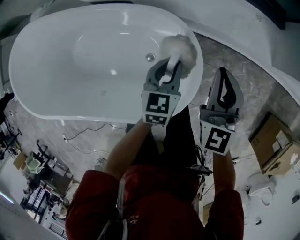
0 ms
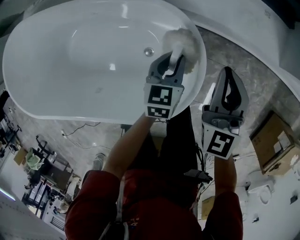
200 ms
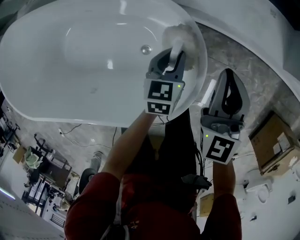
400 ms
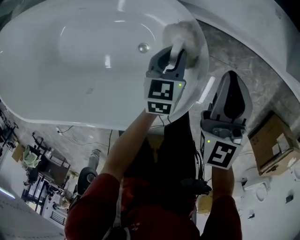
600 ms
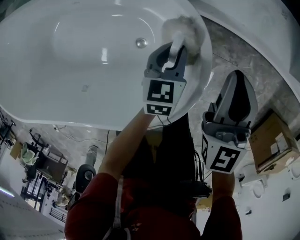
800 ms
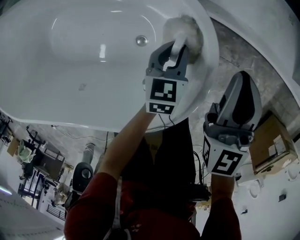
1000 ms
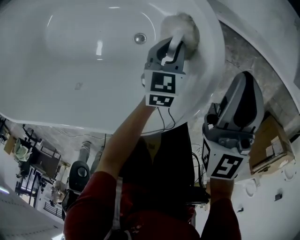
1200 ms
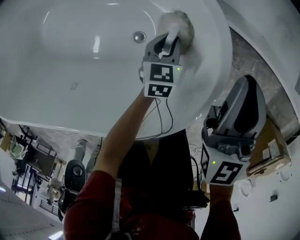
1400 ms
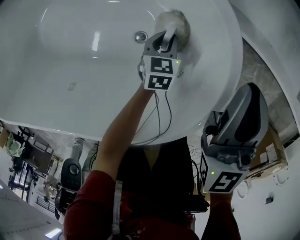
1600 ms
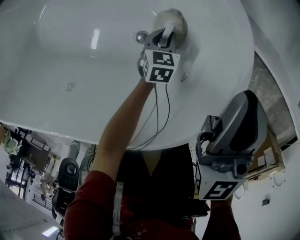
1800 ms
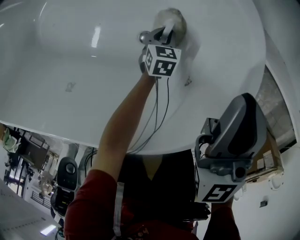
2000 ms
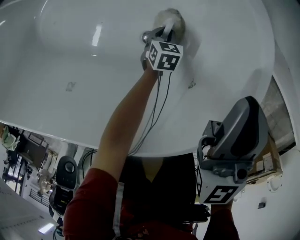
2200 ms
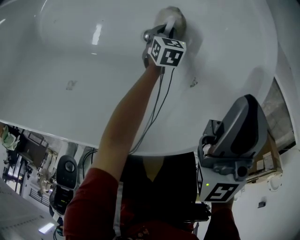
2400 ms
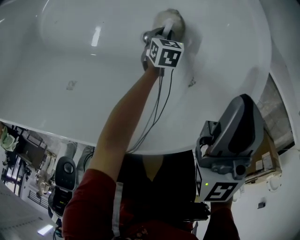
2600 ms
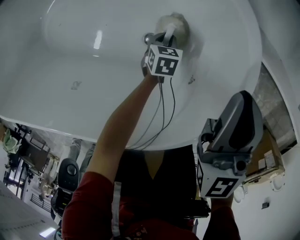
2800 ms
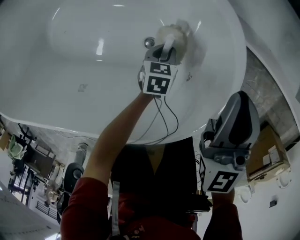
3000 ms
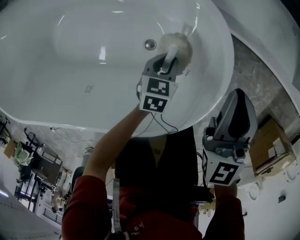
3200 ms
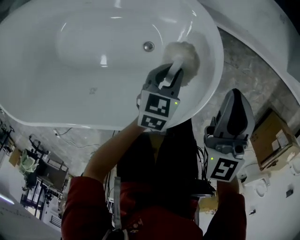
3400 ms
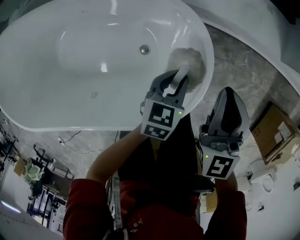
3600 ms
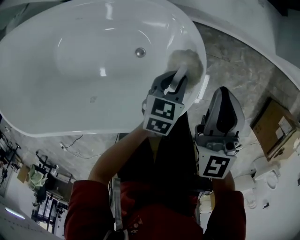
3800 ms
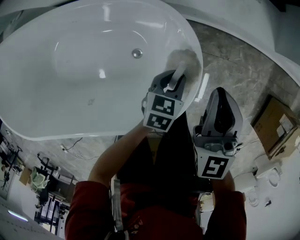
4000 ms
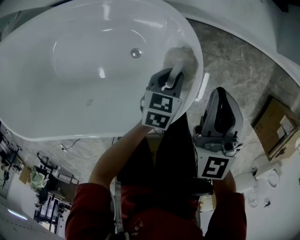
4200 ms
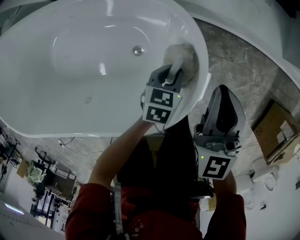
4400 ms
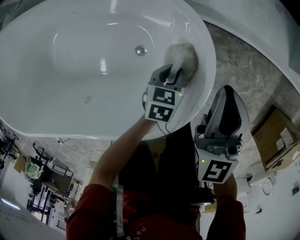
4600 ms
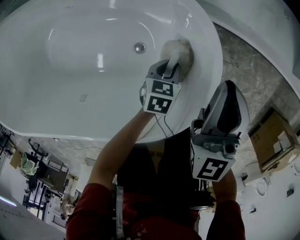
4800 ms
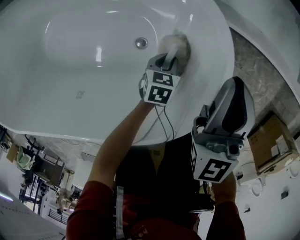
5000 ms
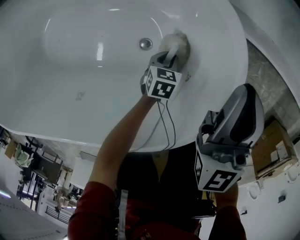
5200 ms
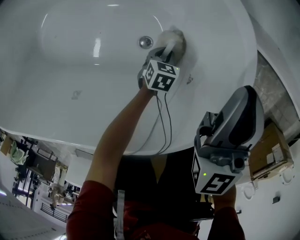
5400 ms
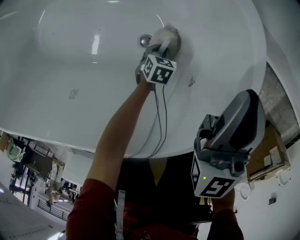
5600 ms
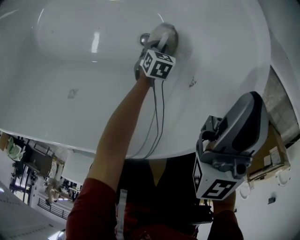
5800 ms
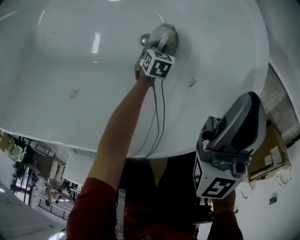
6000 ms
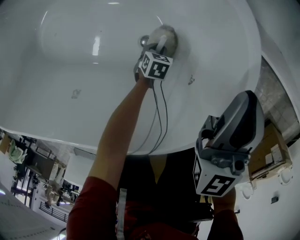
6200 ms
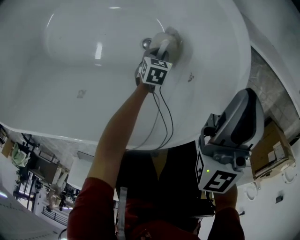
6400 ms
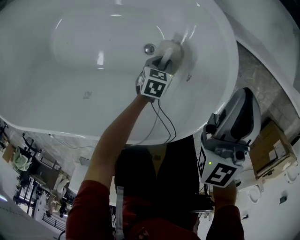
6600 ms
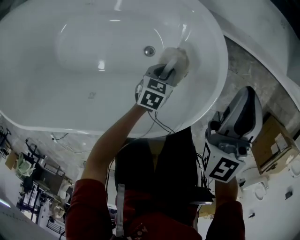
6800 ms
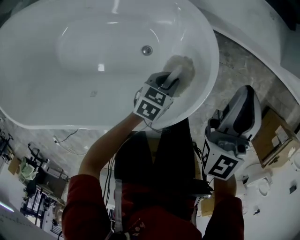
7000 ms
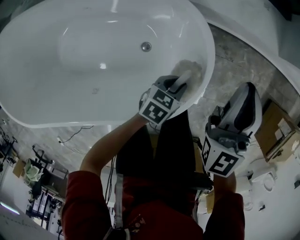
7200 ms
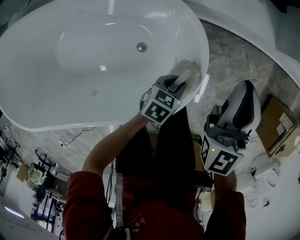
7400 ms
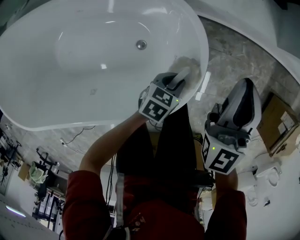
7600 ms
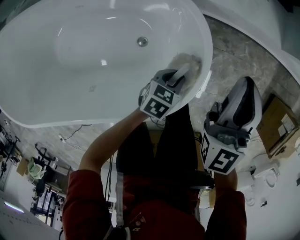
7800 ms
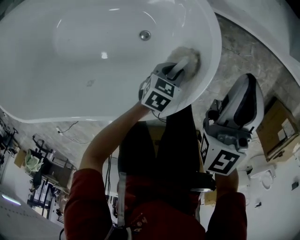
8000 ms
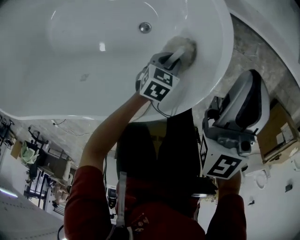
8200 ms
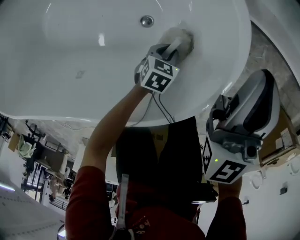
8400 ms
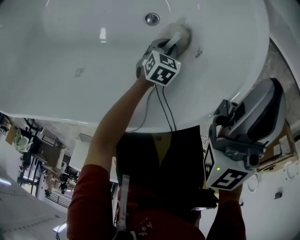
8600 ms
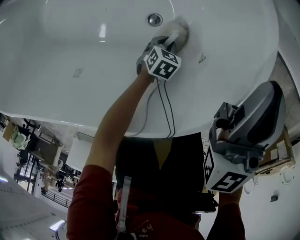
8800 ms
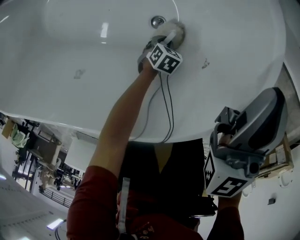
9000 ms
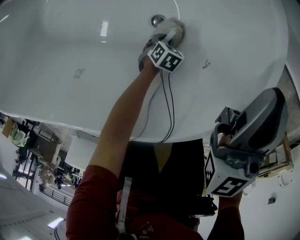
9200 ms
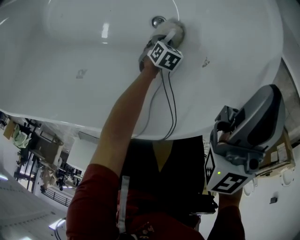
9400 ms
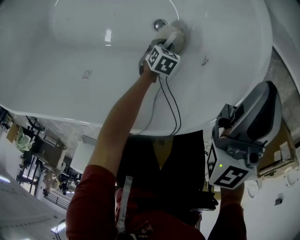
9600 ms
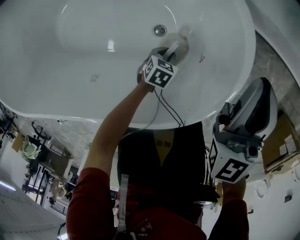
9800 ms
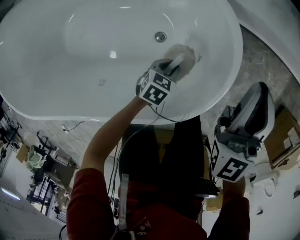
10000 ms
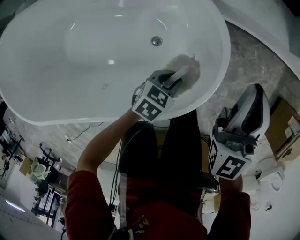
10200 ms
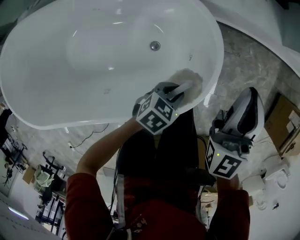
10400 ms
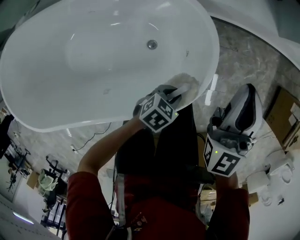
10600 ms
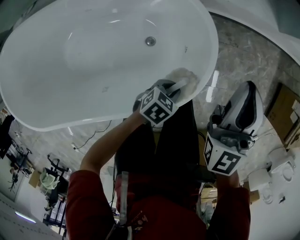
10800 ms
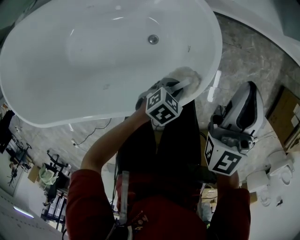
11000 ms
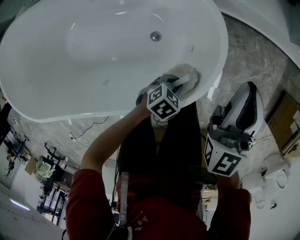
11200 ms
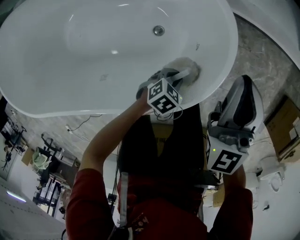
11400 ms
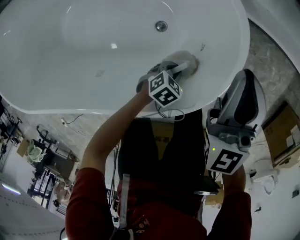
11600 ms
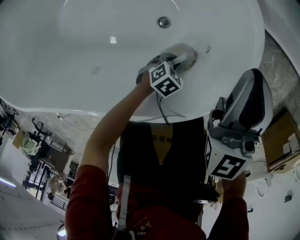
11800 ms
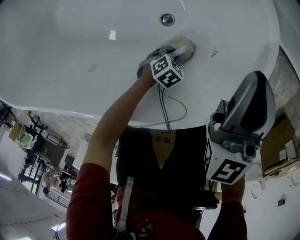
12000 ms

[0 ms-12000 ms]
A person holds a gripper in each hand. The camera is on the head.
0 ms to 1600 ms: The right gripper goes about 15 cm downward; the left gripper heads downward, covering roughly 35 cm.
1600 ms to 3000 ms: The left gripper travels downward and back again, about 15 cm each way.
3000 ms to 4400 ms: The left gripper moves upward and to the right, roughly 20 cm, while the right gripper heads to the right and upward, covering approximately 10 cm.
4400 ms to 6000 ms: The right gripper travels downward and to the left by roughly 15 cm, while the left gripper travels downward by some 30 cm, and rotates some 20 degrees.
6000 ms to 7600 ms: The left gripper heads upward and to the right, covering approximately 40 cm, and changes its angle by approximately 30 degrees, while the right gripper shifts about 25 cm upward and to the right.
7600 ms to 9000 ms: The right gripper moves downward, roughly 15 cm. The left gripper moves downward, some 35 cm, and points its fingers approximately 30 degrees further downward.
9000 ms to 10400 ms: The right gripper travels upward by approximately 20 cm, and changes its angle by about 20 degrees, while the left gripper goes about 40 cm upward, and turns by about 40 degrees.
10400 ms to 12000 ms: The left gripper travels downward by roughly 30 cm, and rotates about 20 degrees. Meanwhile the right gripper goes approximately 20 cm downward and to the left, and rotates about 20 degrees.

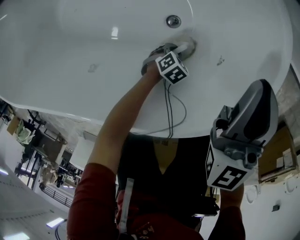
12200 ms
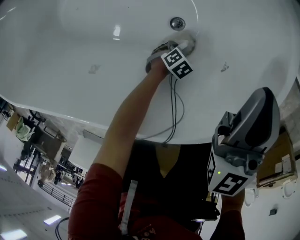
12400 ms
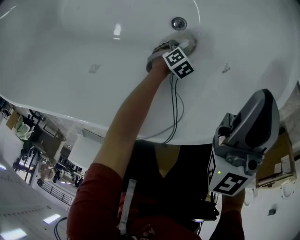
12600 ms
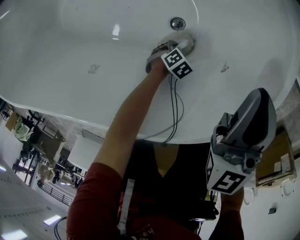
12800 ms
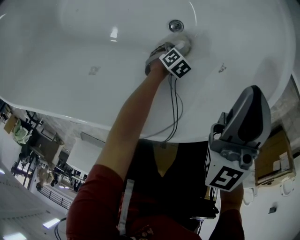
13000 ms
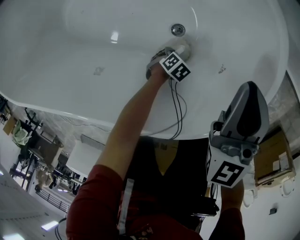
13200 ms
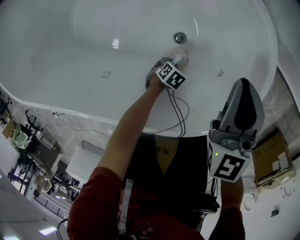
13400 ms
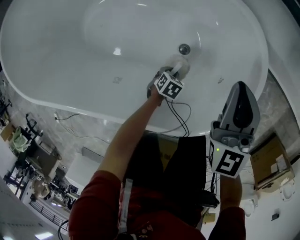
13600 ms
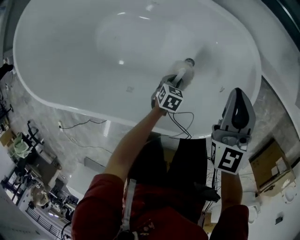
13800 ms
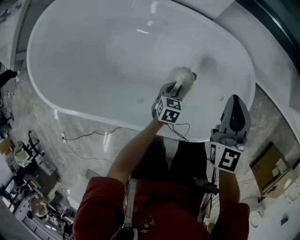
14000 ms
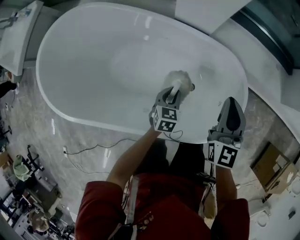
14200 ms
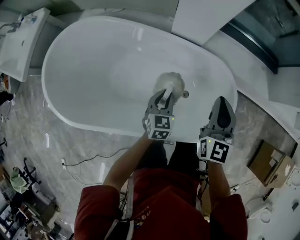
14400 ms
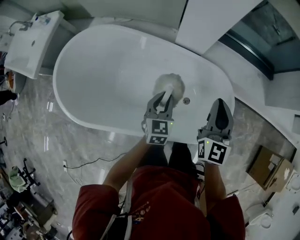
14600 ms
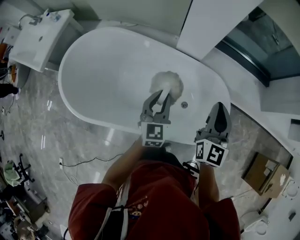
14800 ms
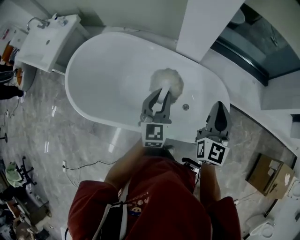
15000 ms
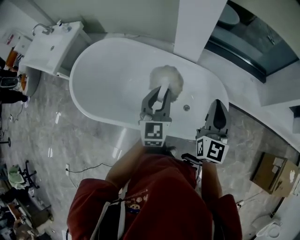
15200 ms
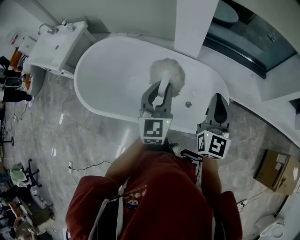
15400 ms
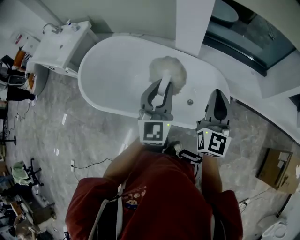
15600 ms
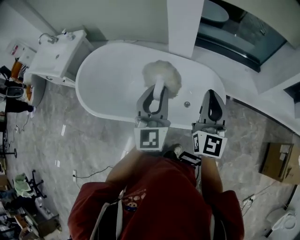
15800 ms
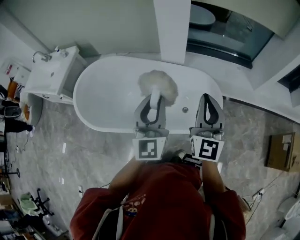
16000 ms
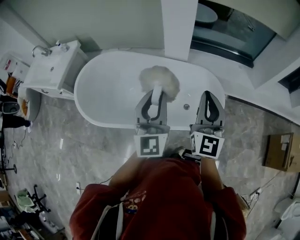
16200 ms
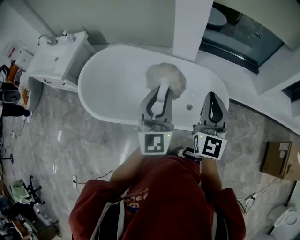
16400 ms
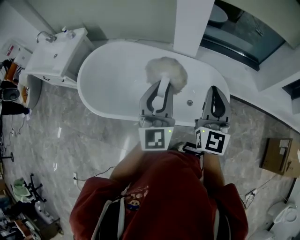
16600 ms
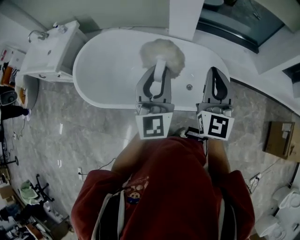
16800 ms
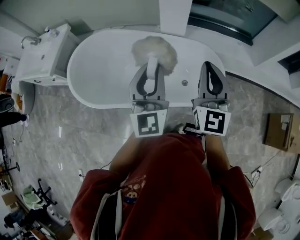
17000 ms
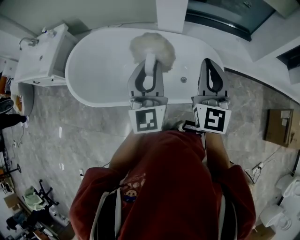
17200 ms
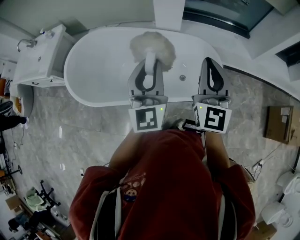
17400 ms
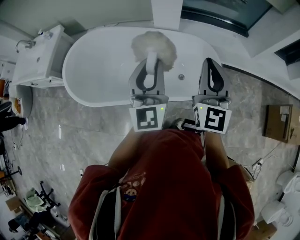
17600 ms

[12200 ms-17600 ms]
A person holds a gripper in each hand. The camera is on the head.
12200 ms to 13600 ms: The left gripper moves upward, about 10 cm, and swivels roughly 20 degrees. Meanwhile the right gripper moves approximately 10 cm.
13600 ms to 15000 ms: The left gripper is displaced upward by about 70 cm, and tips its fingers upward by roughly 60 degrees; the right gripper travels upward and backward by roughly 40 cm, and turns by about 30 degrees.
15000 ms to 16200 ms: The right gripper heads backward and upward, covering roughly 20 cm; the left gripper heads upward and backward, covering roughly 25 cm, and swivels about 20 degrees.
16200 ms to 17600 ms: The grippers move only a little.

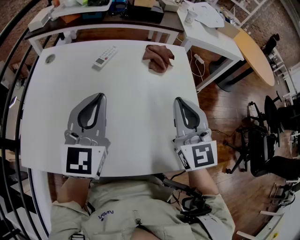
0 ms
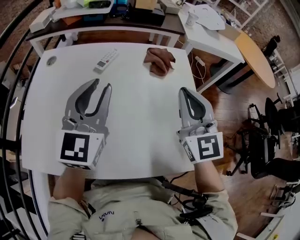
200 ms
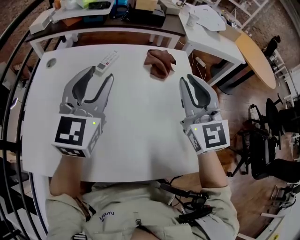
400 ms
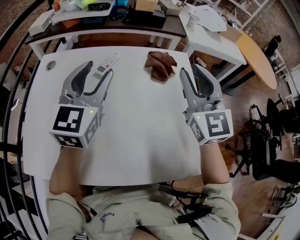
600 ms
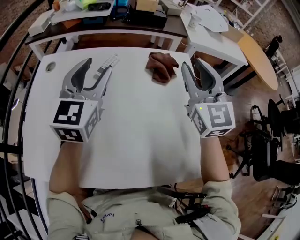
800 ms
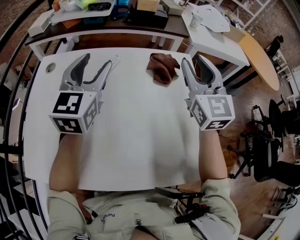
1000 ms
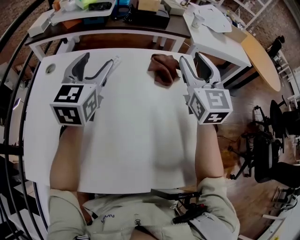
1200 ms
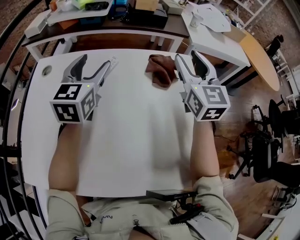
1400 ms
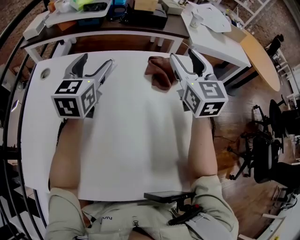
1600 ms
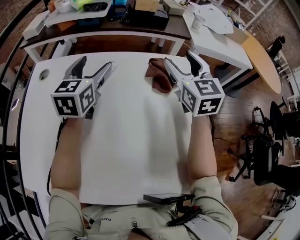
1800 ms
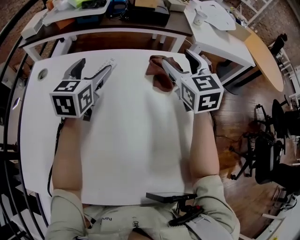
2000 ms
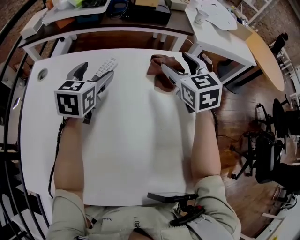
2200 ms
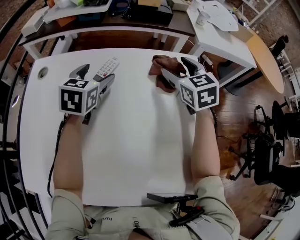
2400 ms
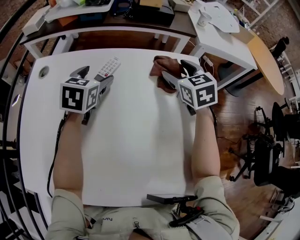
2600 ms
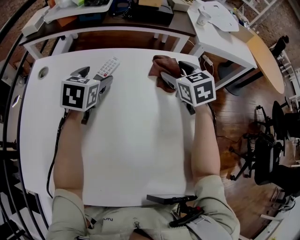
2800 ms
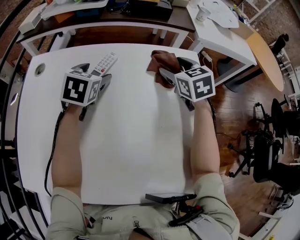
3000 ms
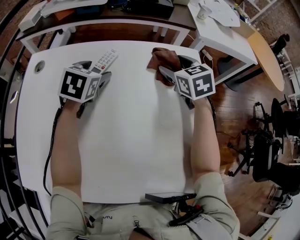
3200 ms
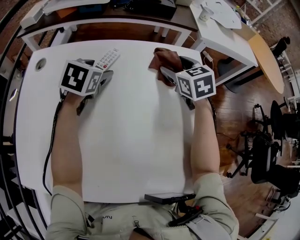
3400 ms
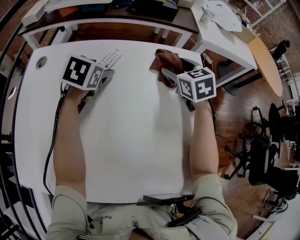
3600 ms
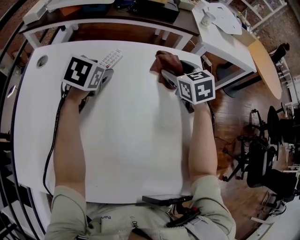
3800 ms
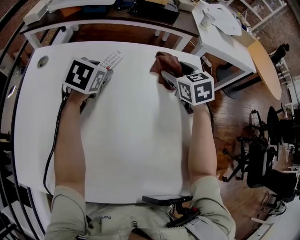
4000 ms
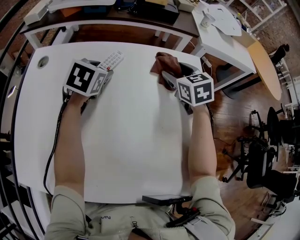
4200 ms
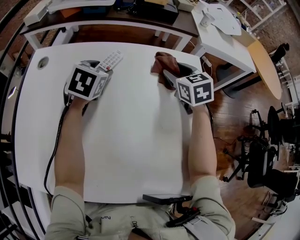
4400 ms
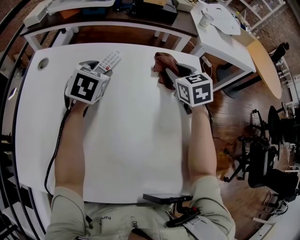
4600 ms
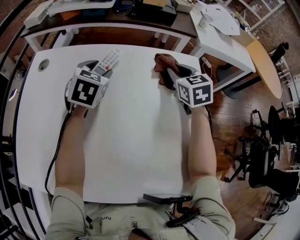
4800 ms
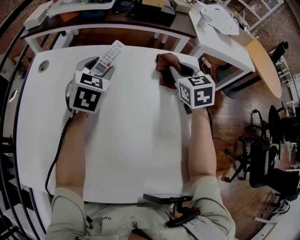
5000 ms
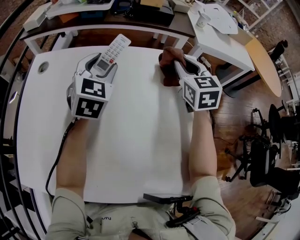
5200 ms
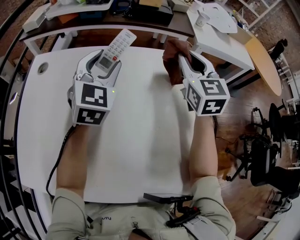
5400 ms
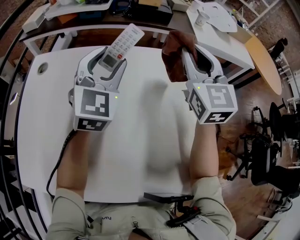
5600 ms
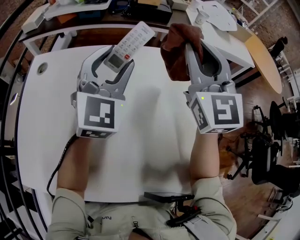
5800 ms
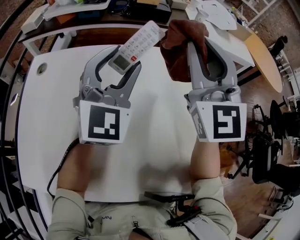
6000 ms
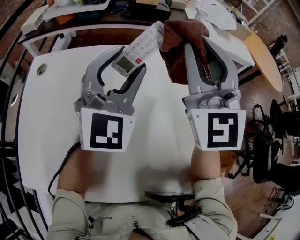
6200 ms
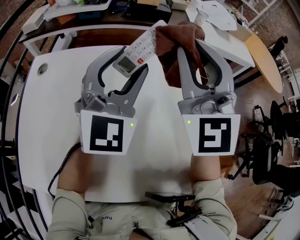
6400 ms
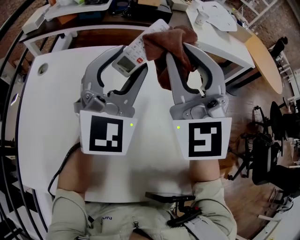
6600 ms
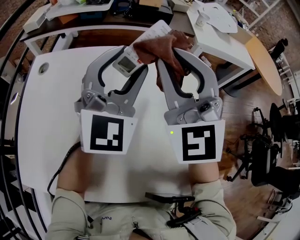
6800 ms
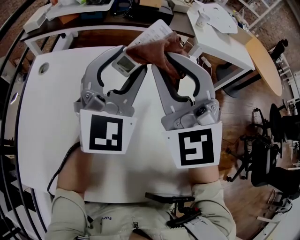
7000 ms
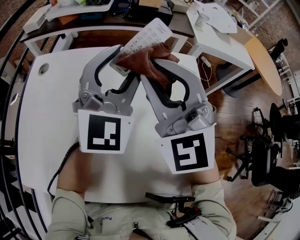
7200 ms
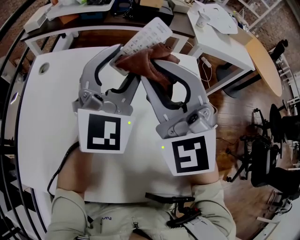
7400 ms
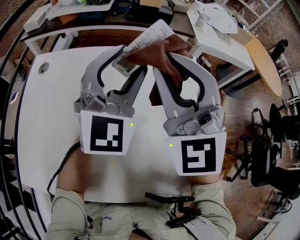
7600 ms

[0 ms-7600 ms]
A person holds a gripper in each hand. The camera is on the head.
0 ms to 1600 ms: The two grippers go about 20 cm forward. The right gripper opens up; the left gripper opens.
1600 ms to 3000 ms: Both grippers move downward, roughly 15 cm. The left gripper changes its angle by about 30 degrees, while the right gripper tips its fingers downward by roughly 30 degrees.
3000 ms to 4600 ms: The left gripper closes its fingers. Meanwhile the right gripper closes its fingers.
4600 ms to 6000 ms: The left gripper shifts approximately 20 cm upward, to the right and backward, and angles its fingers upward, by about 40 degrees. The right gripper is displaced upward and backward by about 25 cm, and tilts its fingers some 40 degrees upward.
6000 ms to 7600 ms: The right gripper shifts about 10 cm to the left and backward.
